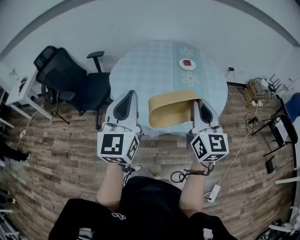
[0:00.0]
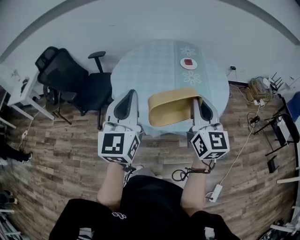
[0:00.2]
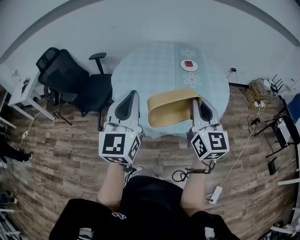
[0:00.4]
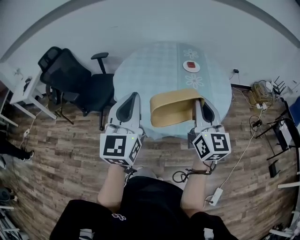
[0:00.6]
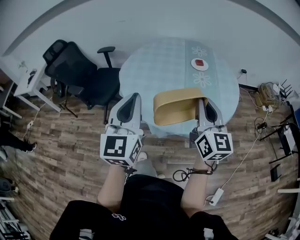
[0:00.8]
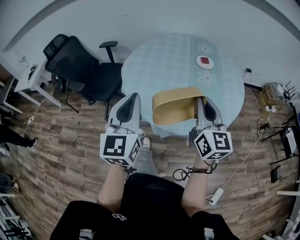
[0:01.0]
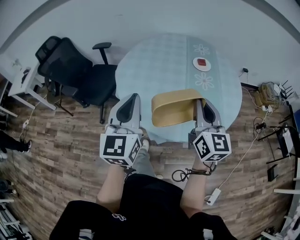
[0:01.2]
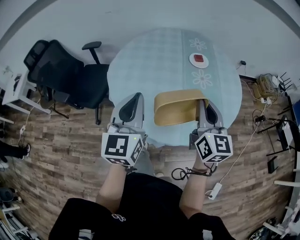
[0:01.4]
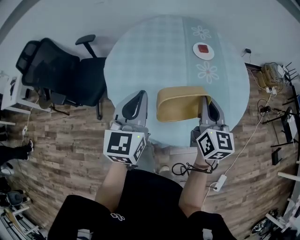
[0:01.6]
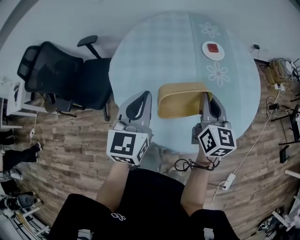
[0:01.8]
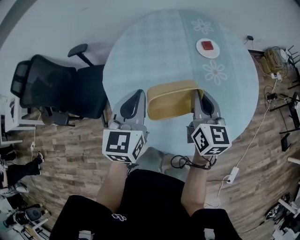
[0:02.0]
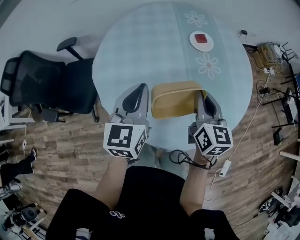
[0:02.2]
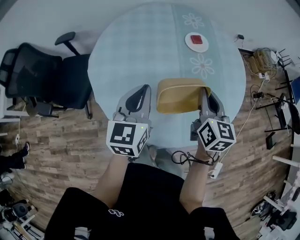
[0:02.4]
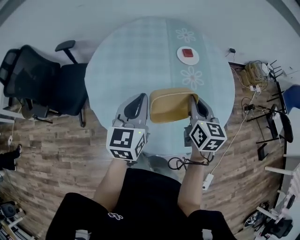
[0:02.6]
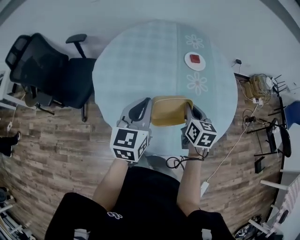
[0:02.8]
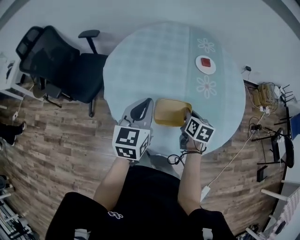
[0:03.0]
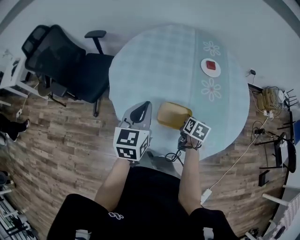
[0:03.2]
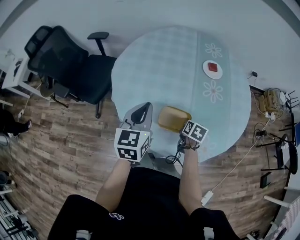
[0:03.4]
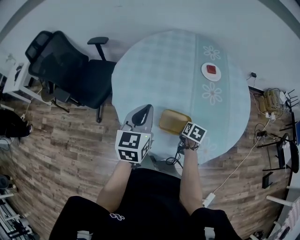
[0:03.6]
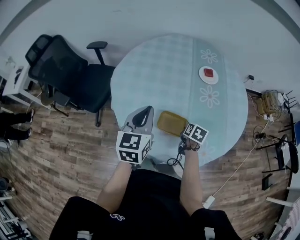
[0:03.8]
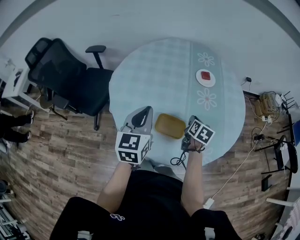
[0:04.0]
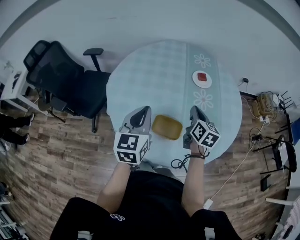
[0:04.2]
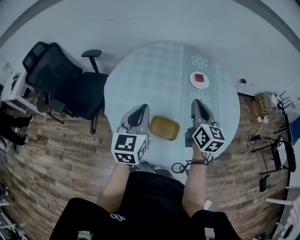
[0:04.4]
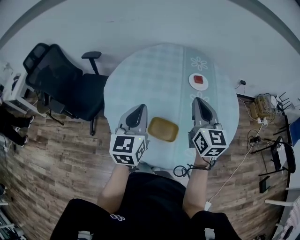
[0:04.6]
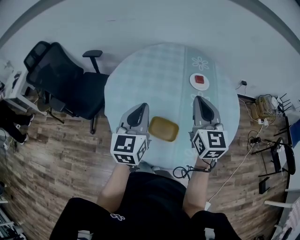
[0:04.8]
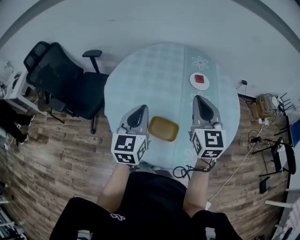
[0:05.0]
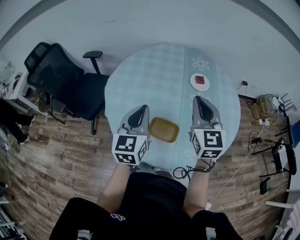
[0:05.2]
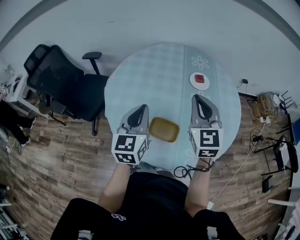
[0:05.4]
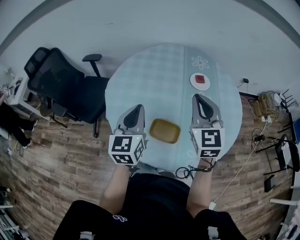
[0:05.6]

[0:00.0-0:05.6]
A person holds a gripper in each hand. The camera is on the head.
0:00.0 to 0:01.4: The right gripper is displaced forward by roughly 15 cm. Meanwhile the left gripper shifts roughly 20 cm forward and downward.
0:01.4 to 0:02.8: The left gripper shifts some 15 cm forward and downward; the right gripper is displaced downward and forward by some 20 cm, and turns by some 30 degrees.
0:02.8 to 0:04.2: The right gripper moves roughly 15 cm downward and comes back, and opens, then closes again.
0:04.2 to 0:05.6: The right gripper is displaced upward by roughly 15 cm, and twists approximately 40 degrees counterclockwise, seen from behind.

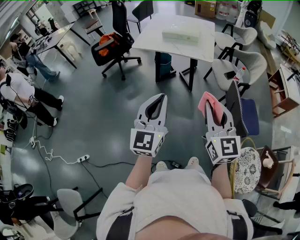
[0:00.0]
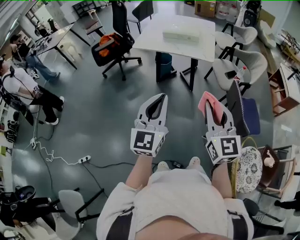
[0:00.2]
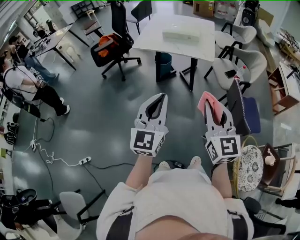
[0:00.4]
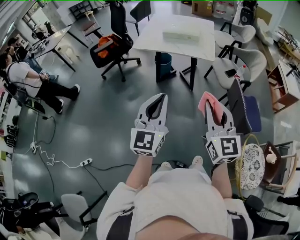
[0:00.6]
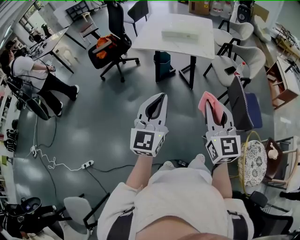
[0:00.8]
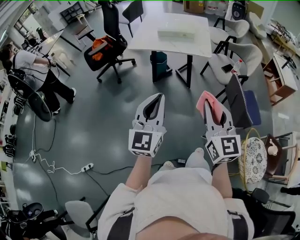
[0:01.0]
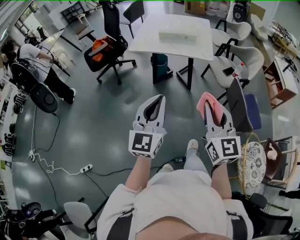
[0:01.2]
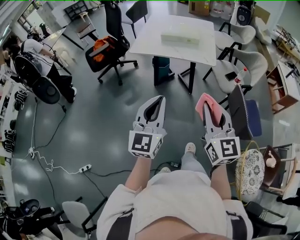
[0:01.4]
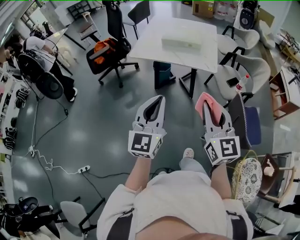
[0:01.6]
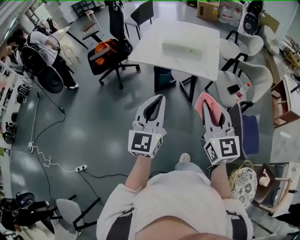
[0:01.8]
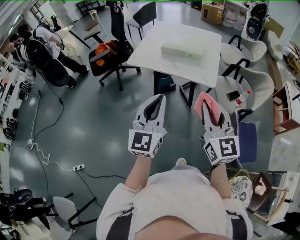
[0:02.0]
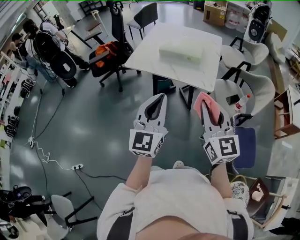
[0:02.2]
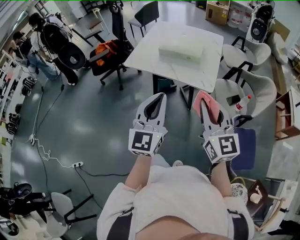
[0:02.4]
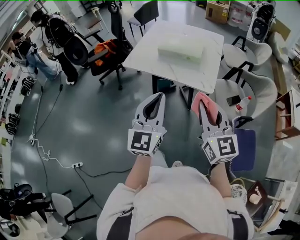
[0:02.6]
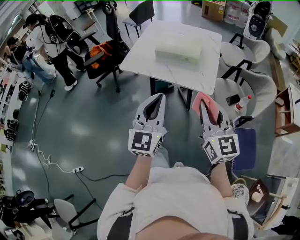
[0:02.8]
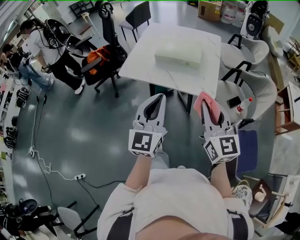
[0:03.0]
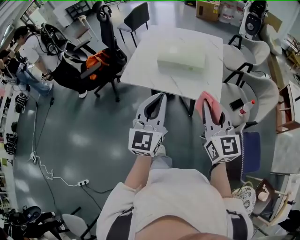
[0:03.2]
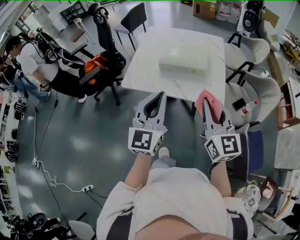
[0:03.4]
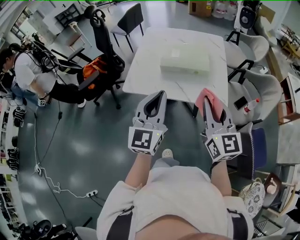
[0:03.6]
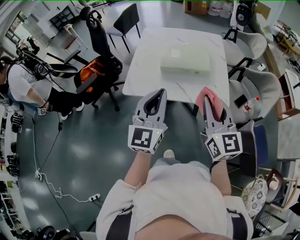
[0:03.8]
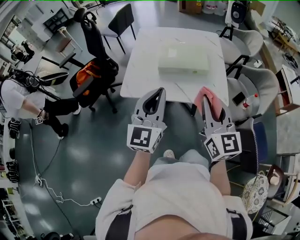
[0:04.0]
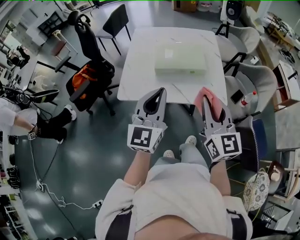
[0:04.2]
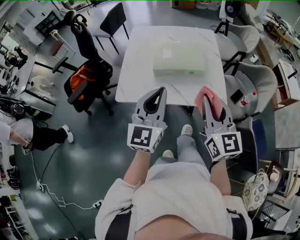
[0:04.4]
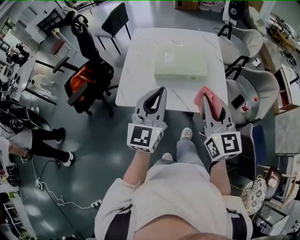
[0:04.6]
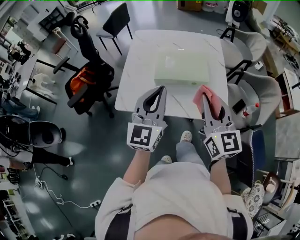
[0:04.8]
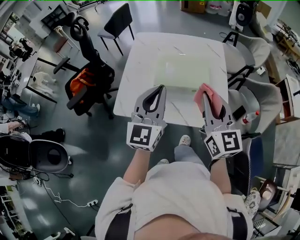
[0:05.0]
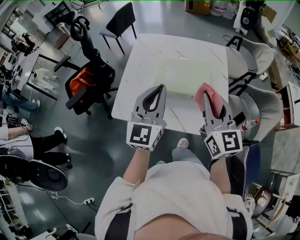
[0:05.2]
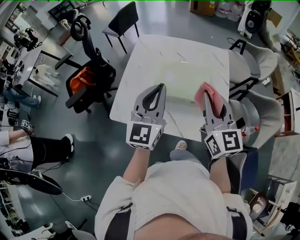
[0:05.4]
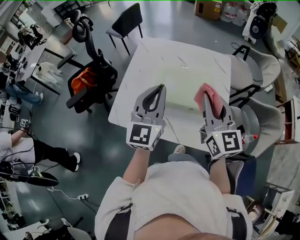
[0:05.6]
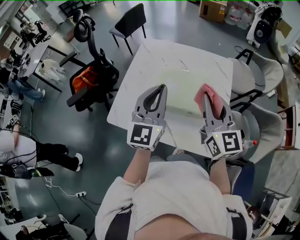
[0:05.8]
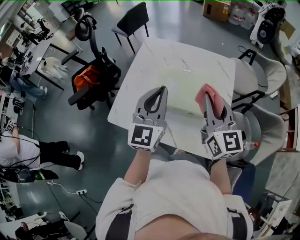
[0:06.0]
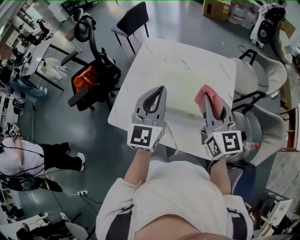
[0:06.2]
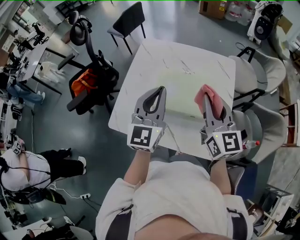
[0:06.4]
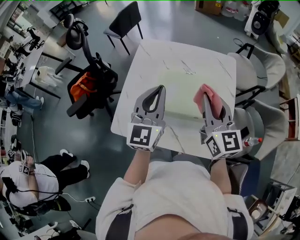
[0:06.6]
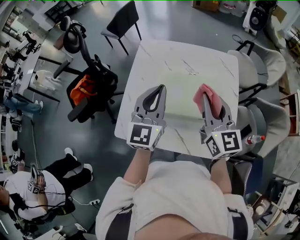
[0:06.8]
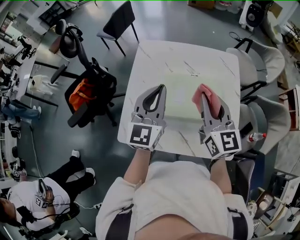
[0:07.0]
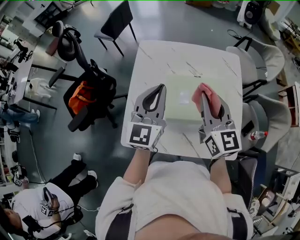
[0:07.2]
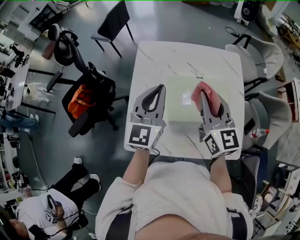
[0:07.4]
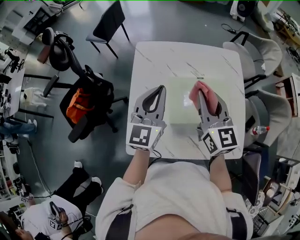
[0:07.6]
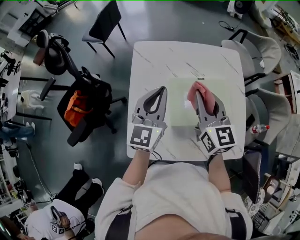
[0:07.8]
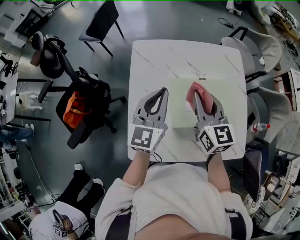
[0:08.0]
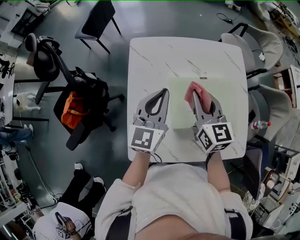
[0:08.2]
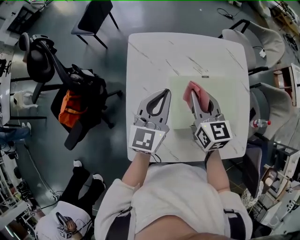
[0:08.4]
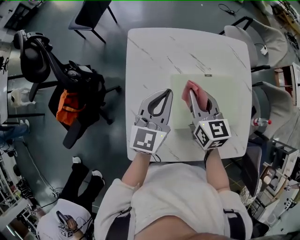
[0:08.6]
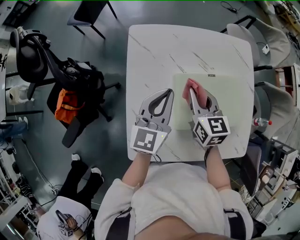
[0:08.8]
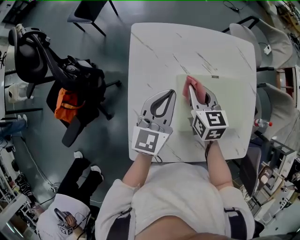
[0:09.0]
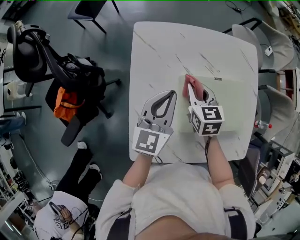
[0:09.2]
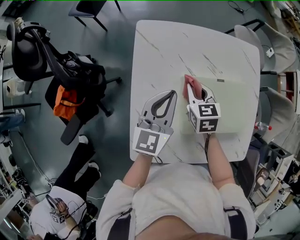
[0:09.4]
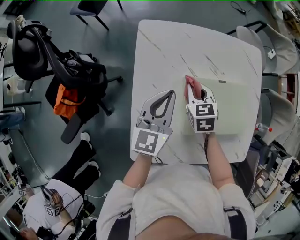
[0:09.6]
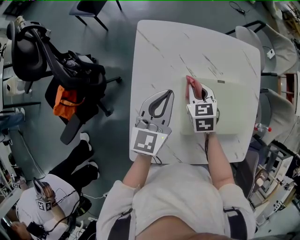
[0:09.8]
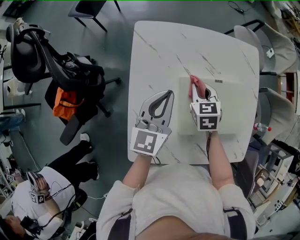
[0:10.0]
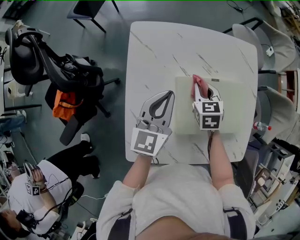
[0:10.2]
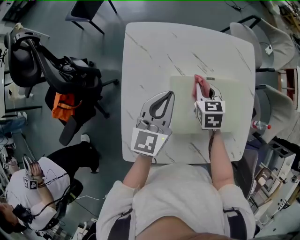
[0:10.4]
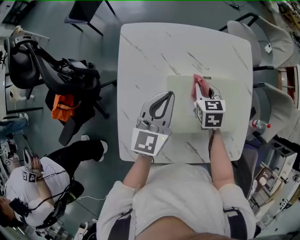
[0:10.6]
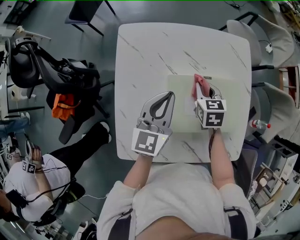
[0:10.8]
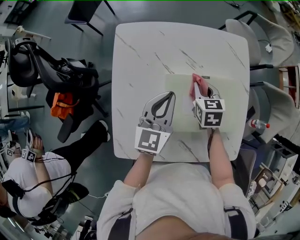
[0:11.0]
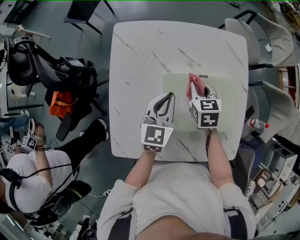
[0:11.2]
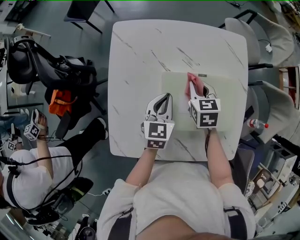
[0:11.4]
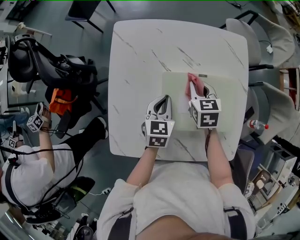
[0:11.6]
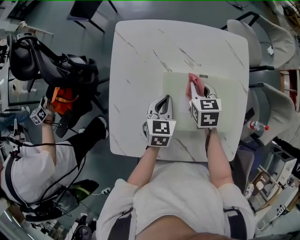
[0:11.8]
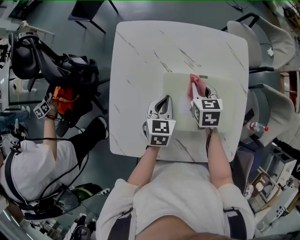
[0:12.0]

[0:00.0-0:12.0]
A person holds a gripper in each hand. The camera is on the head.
0:00.0 to 0:01.6: Both grippers move forward, about 10 cm.
0:01.6 to 0:03.0: Both grippers travel together forward, about 25 cm.
0:03.0 to 0:04.4: The two grippers go roughly 20 cm forward and to the left.
0:04.4 to 0:06.0: Both grippers travel together forward, approximately 25 cm.
0:06.0 to 0:07.6: The right gripper travels to the left and forward by some 20 cm. Meanwhile the left gripper is displaced forward and to the left by about 20 cm.
0:07.6 to 0:09.0: The right gripper shifts some 20 cm downward and forward, and changes its angle by some 30 degrees, while the left gripper heads downward and forward, covering some 10 cm.
0:09.0 to 0:10.4: The right gripper is displaced to the right and downward by approximately 10 cm.
0:10.4 to 0:12.0: The left gripper goes roughly 15 cm downward and to the right, and turns by about 30 degrees. Meanwhile the right gripper is displaced to the right by some 5 cm.

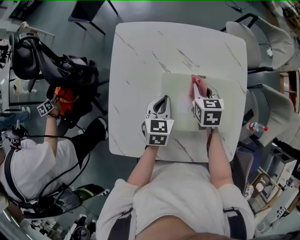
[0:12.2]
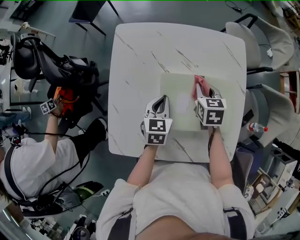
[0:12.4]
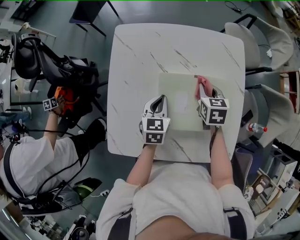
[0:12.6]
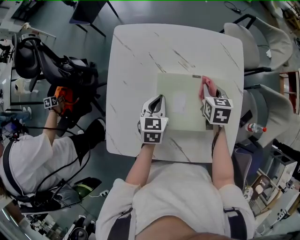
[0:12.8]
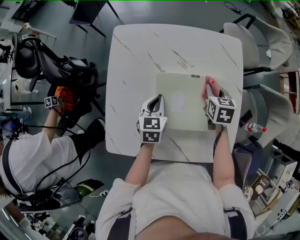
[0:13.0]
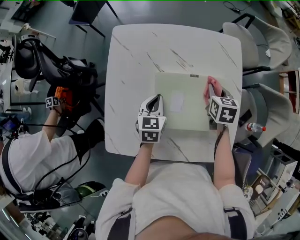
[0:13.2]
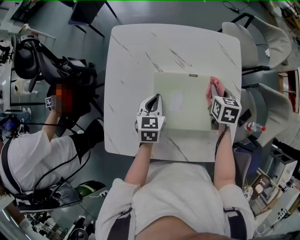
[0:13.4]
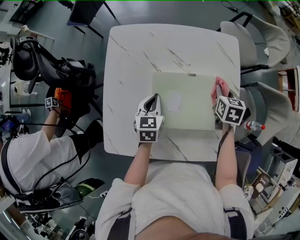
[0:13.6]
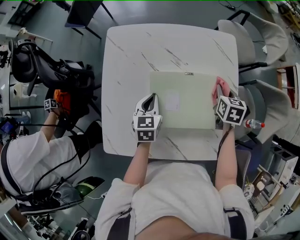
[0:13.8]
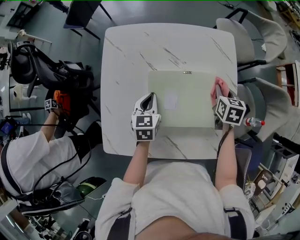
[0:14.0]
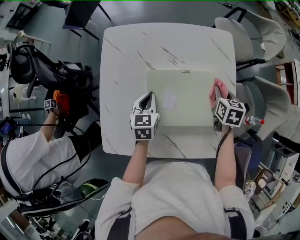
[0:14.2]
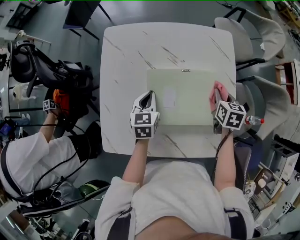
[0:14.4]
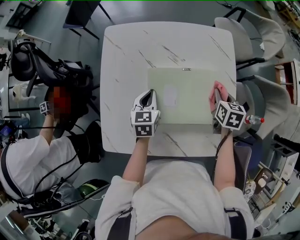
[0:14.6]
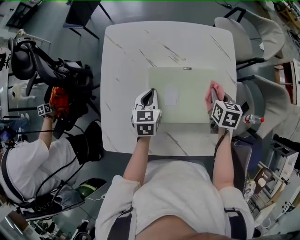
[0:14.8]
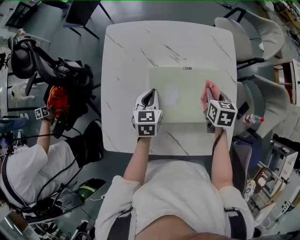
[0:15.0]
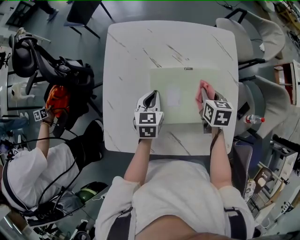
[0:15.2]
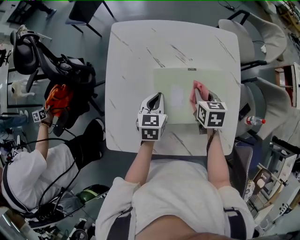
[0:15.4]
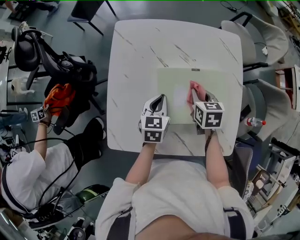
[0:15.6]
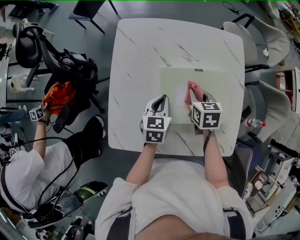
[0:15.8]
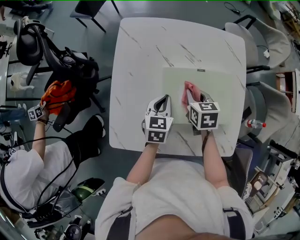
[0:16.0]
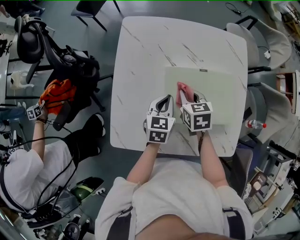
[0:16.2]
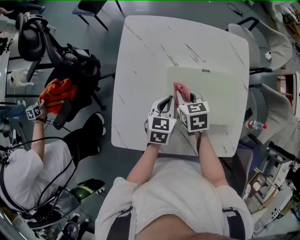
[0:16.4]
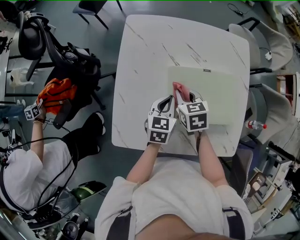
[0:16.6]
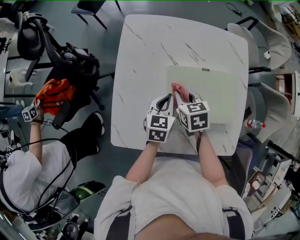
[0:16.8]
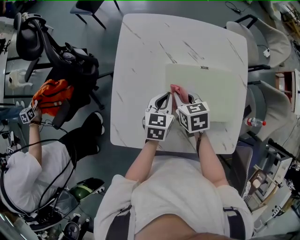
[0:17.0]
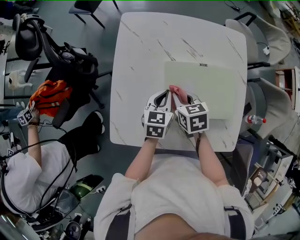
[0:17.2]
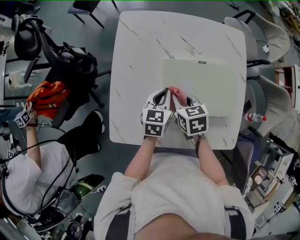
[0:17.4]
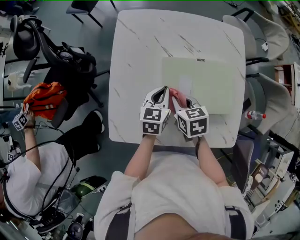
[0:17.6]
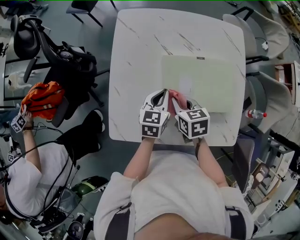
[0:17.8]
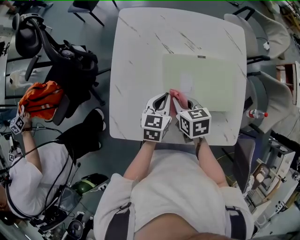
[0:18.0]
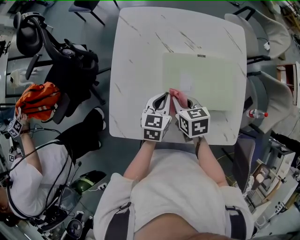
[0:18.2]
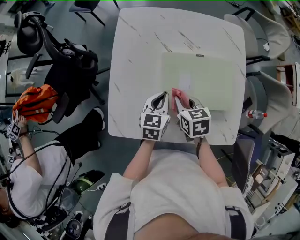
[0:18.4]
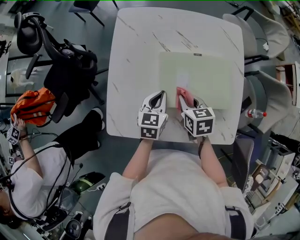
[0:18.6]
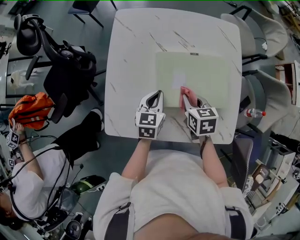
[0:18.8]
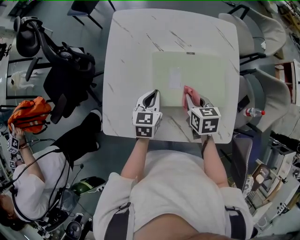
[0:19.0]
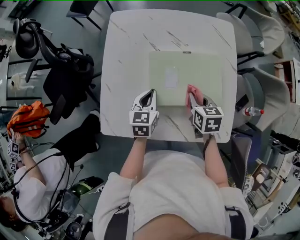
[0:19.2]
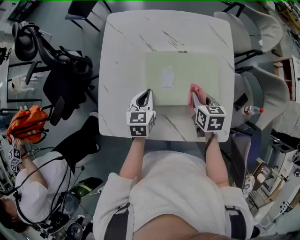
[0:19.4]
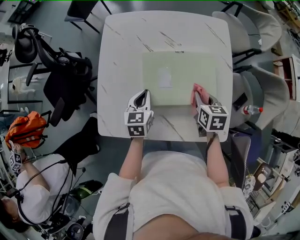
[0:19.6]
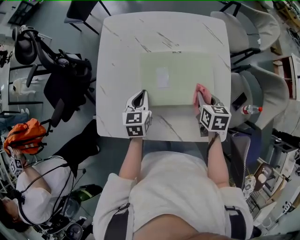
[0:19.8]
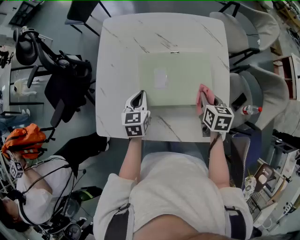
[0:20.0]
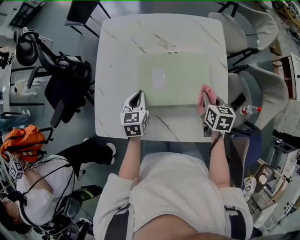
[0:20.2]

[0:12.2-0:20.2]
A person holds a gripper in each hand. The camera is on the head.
0:12.2 to 0:13.8: The right gripper travels to the right by approximately 15 cm.
0:13.8 to 0:15.4: The right gripper heads to the left and backward, covering about 15 cm.
0:15.4 to 0:17.0: The right gripper goes roughly 15 cm to the left.
0:17.0 to 0:18.6: The right gripper travels backward by some 5 cm.
0:18.6 to 0:20.2: The right gripper travels to the right by about 20 cm.
